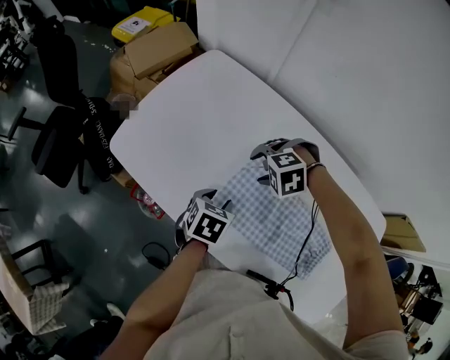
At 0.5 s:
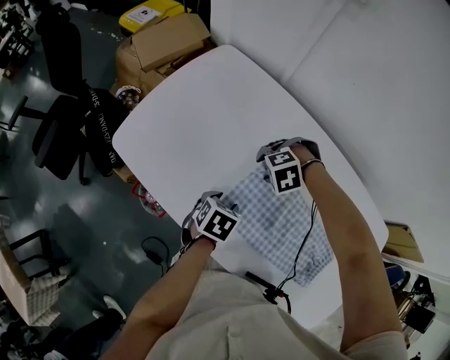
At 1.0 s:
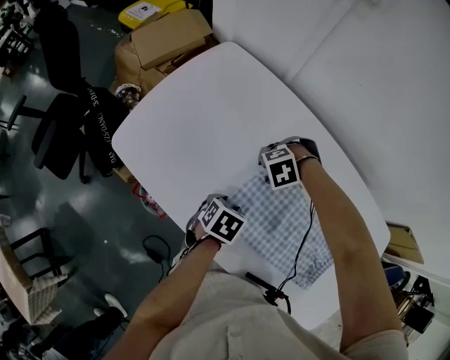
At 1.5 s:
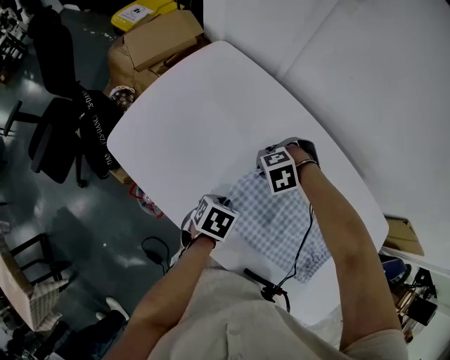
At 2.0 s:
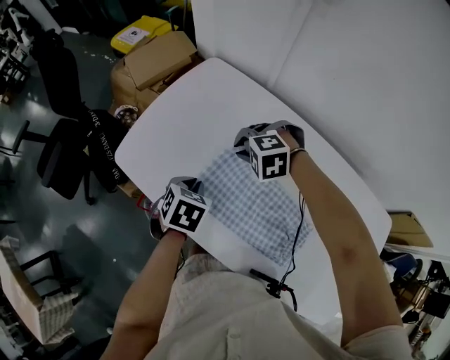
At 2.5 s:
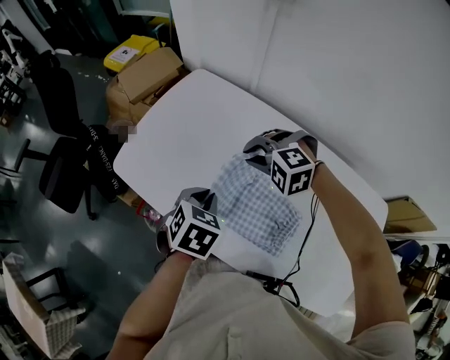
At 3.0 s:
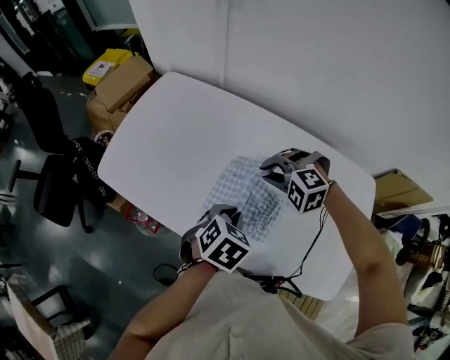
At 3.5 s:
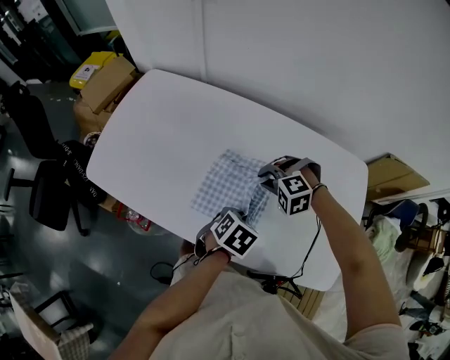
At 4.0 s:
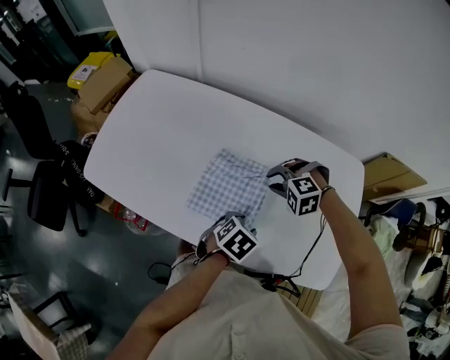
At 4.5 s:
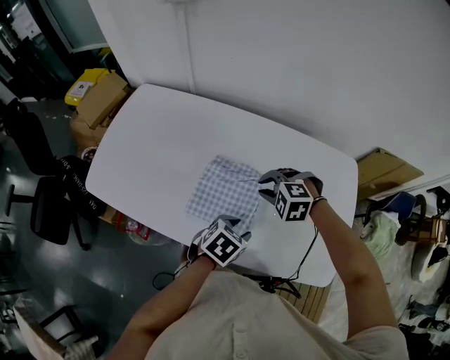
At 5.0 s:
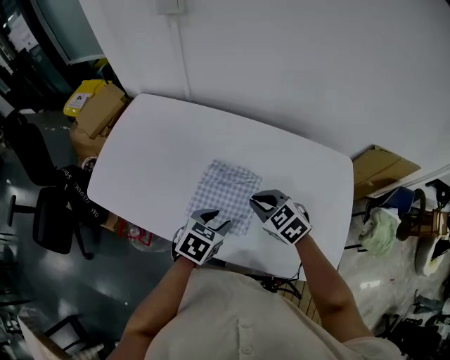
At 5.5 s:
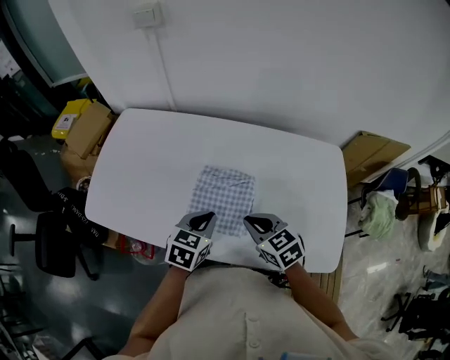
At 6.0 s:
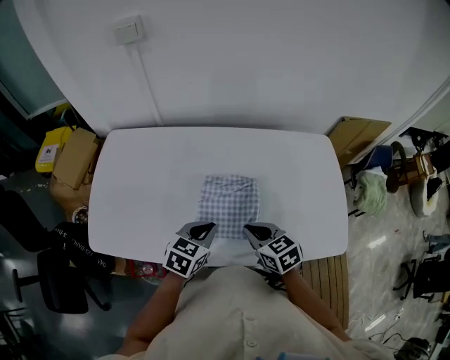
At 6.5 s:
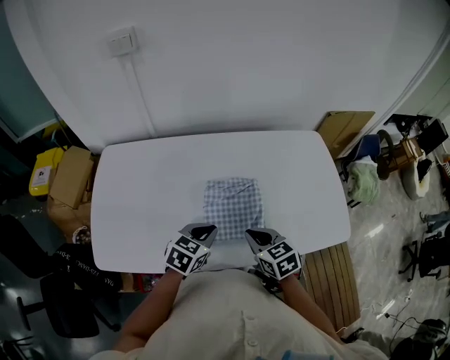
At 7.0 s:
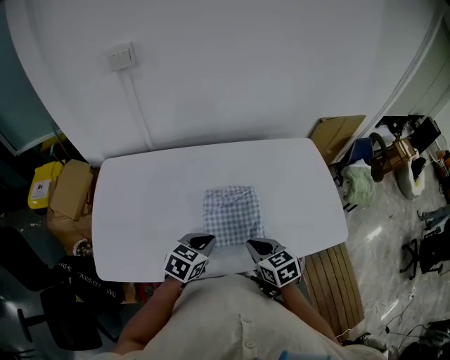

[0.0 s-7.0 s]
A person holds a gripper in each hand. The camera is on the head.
0.0 to 2.0 s: The right gripper moves roughly 5 cm downward and comes back, and closes its fingers. Meanwhile the left gripper ends up approximately 10 cm from where it was, and closes its fingers.
2.0 to 3.5 s: The right gripper moves approximately 5 cm upward and comes back, while the left gripper travels upward and back again, about 5 cm each way, and rotates approximately 30 degrees.
3.5 to 5.0 s: The right gripper shifts some 10 cm upward and backward, and twists roughly 60 degrees clockwise, seen from behind, while the left gripper heads upward, covering about 5 cm, and opens its fingers.
5.0 to 7.0 s: The left gripper ends up roughly 10 cm from where it was, turns by roughly 30 degrees, and closes its fingers; the right gripper changes place by roughly 10 cm, and twists some 40 degrees clockwise, seen from behind.

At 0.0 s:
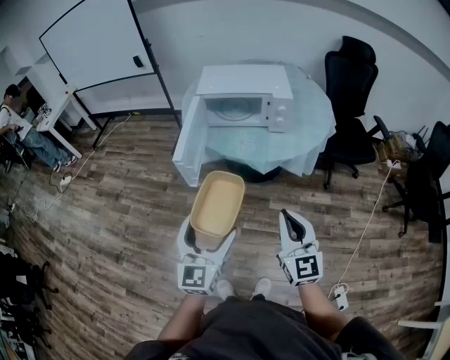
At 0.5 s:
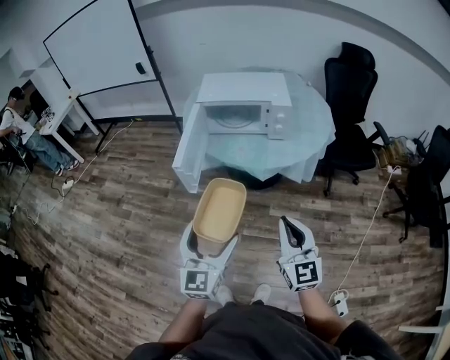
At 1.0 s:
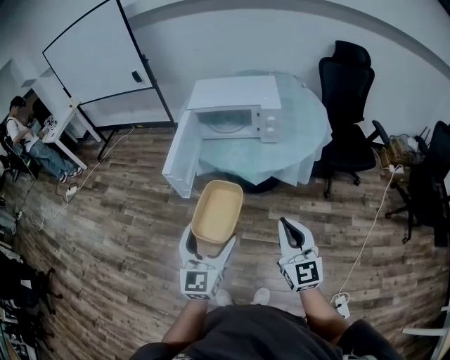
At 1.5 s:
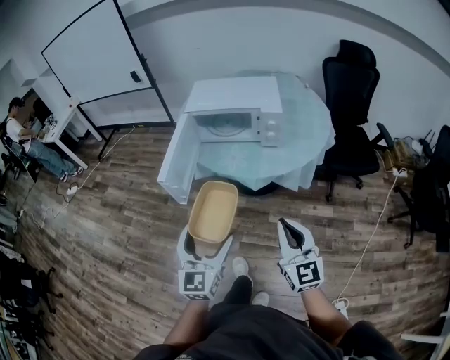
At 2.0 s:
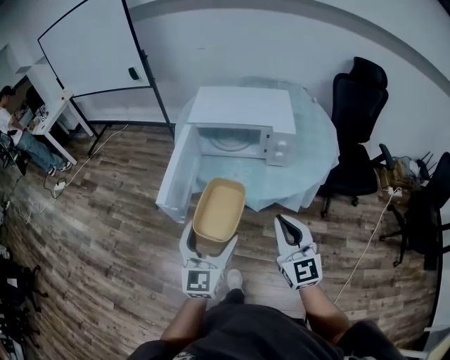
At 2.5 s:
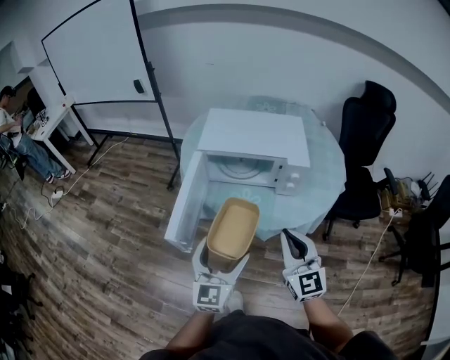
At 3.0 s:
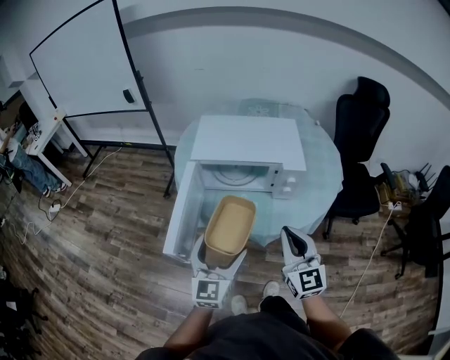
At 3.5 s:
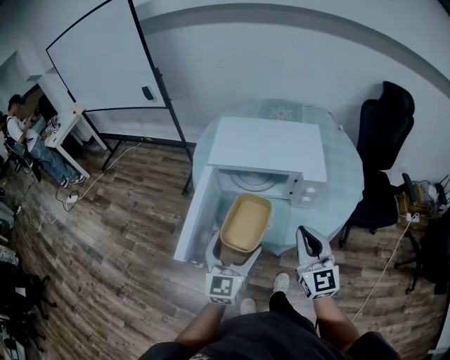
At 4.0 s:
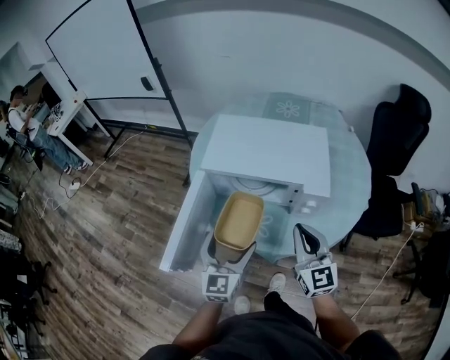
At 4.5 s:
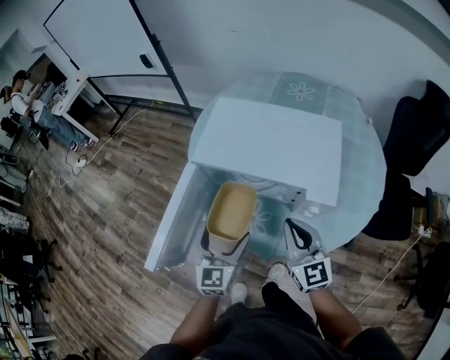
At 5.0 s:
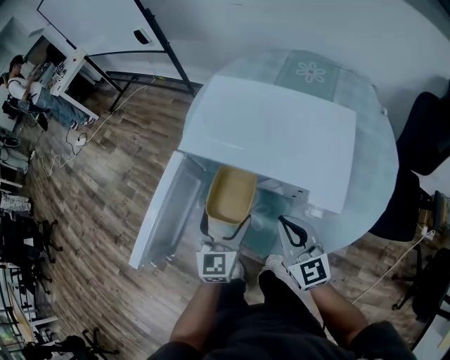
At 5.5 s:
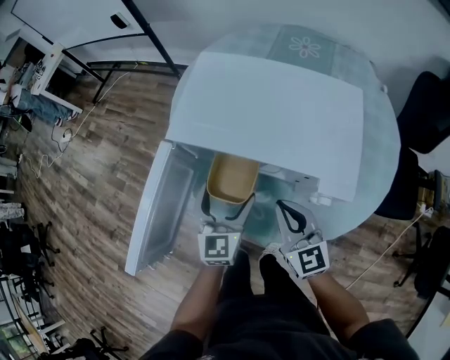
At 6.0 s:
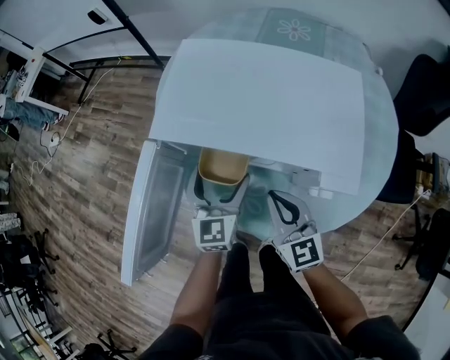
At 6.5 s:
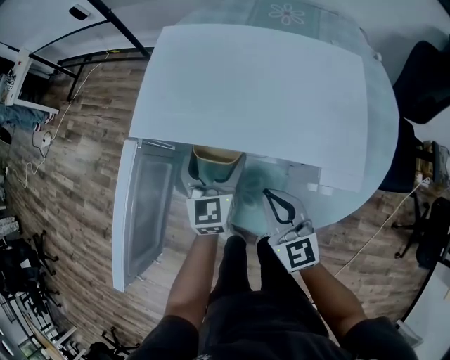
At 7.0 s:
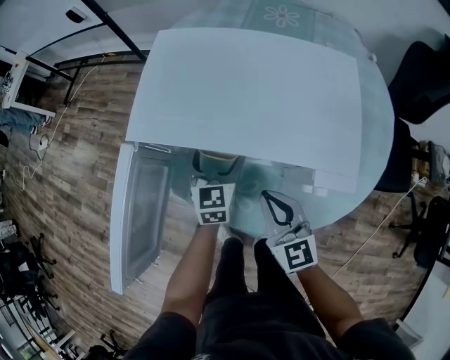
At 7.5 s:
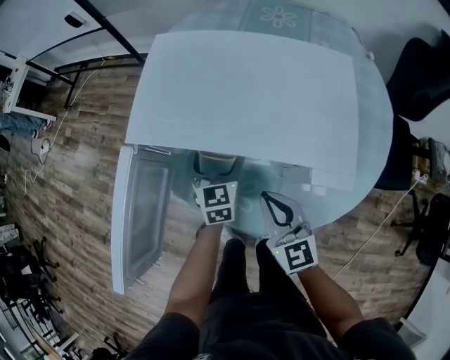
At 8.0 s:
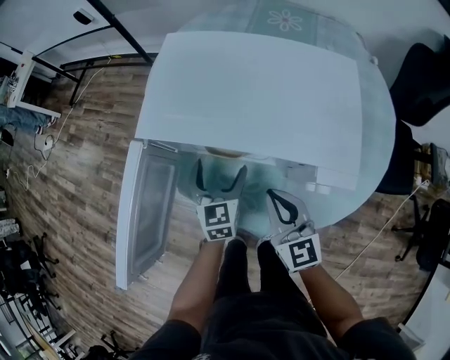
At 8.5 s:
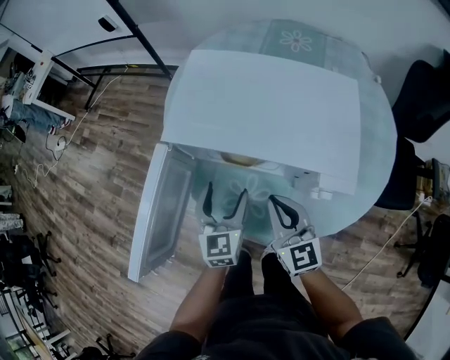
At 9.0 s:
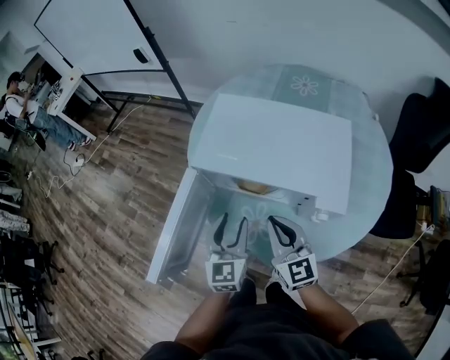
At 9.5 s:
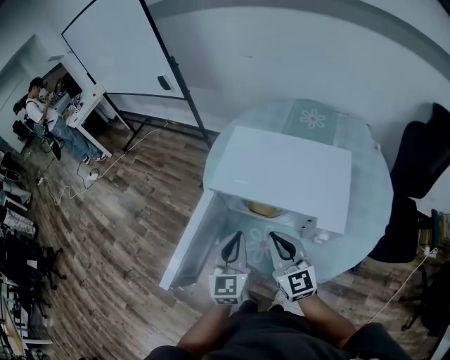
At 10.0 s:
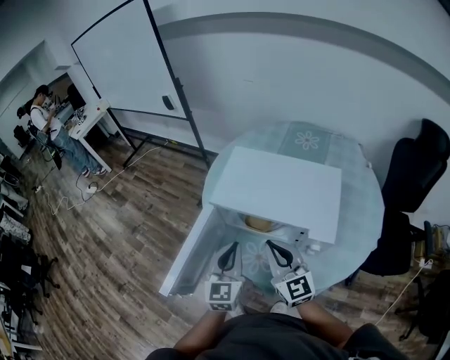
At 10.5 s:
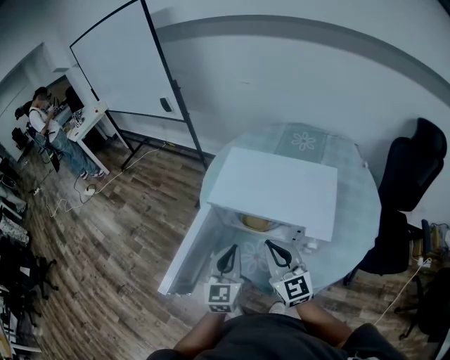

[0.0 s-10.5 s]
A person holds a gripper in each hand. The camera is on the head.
0.0 to 2.0 s: The two grippers go approximately 15 cm forward.
2.0 to 4.0 s: Both grippers travel together forward, approximately 25 cm.
4.0 to 6.5 s: The right gripper shifts some 20 cm downward and forward; the left gripper moves forward and downward, some 25 cm.
6.5 to 8.5 s: The left gripper is displaced backward by about 10 cm.
8.5 to 10.5 s: The left gripper is displaced upward and backward by some 15 cm, and closes its fingers; the right gripper is displaced upward by about 15 cm.

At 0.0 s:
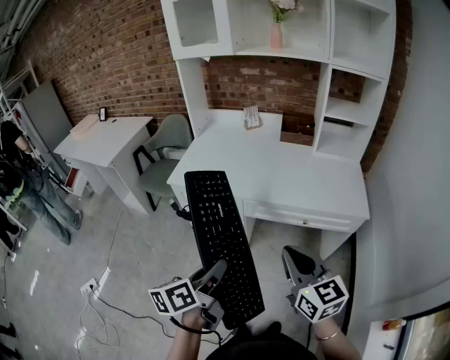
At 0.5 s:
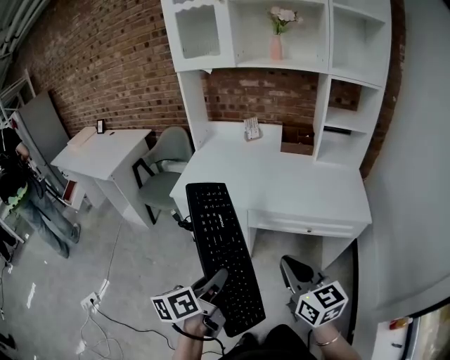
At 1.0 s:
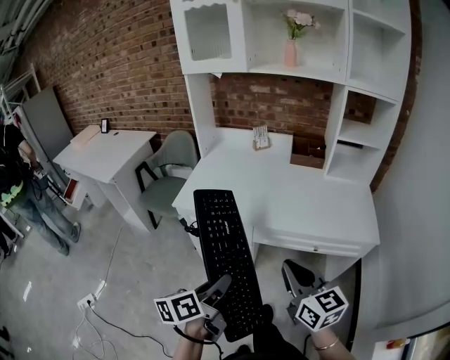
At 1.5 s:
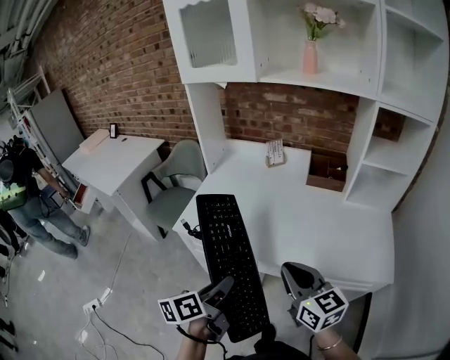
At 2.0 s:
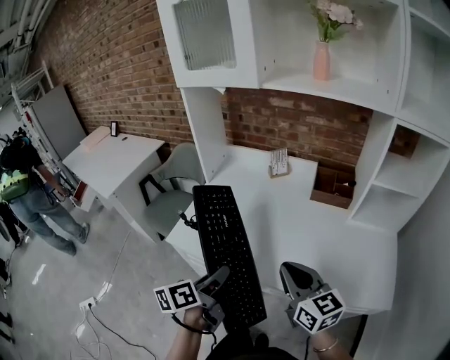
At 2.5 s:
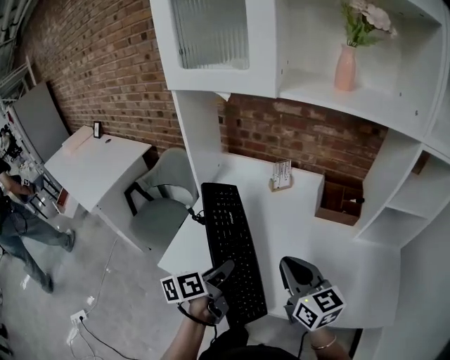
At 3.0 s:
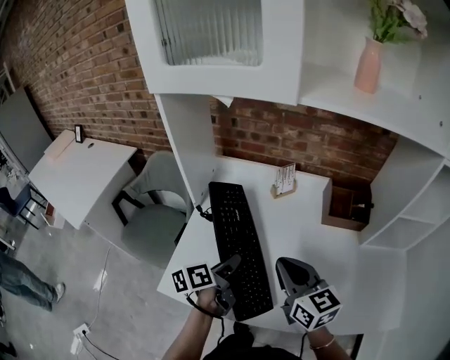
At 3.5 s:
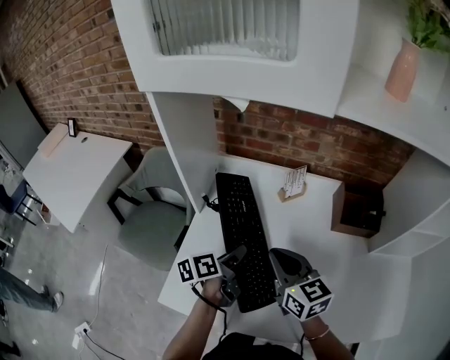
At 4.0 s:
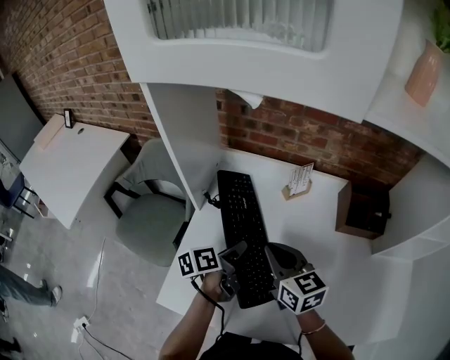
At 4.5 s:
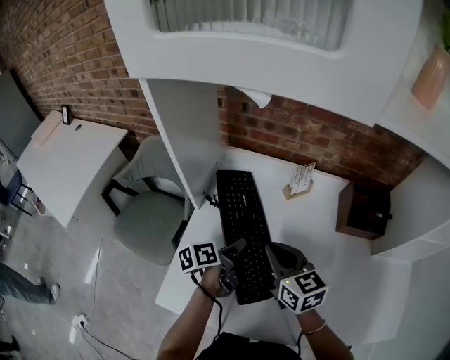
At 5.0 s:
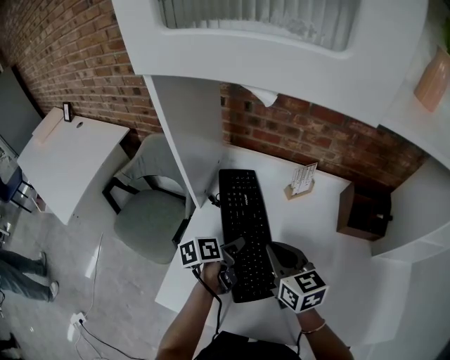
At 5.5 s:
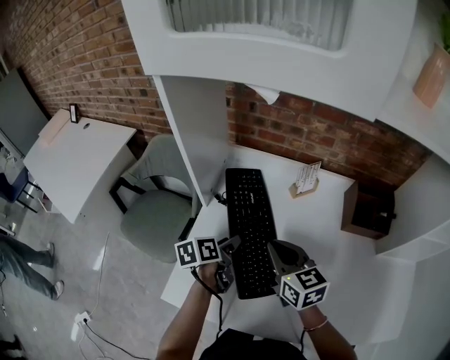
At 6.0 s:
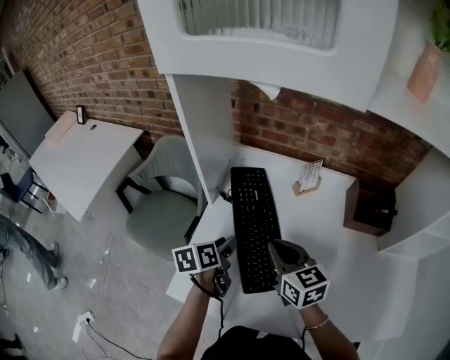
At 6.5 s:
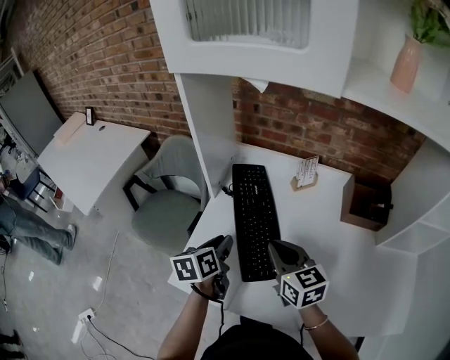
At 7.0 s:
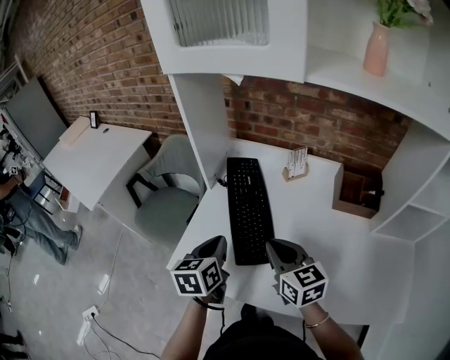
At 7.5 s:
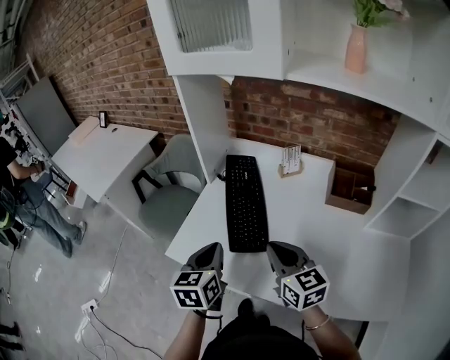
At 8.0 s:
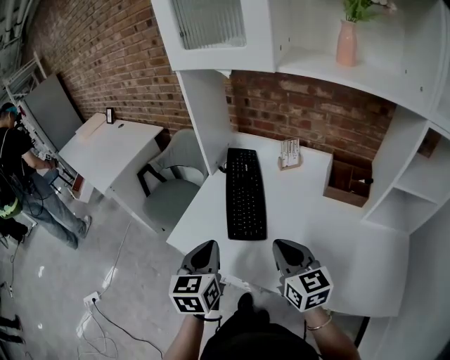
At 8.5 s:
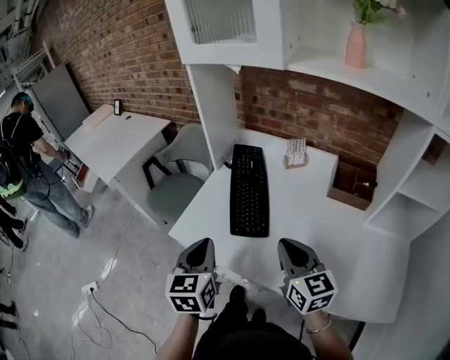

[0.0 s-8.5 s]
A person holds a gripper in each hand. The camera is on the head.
0.0 to 2.0 s: The two grippers go some 30 cm forward.
2.0 to 4.0 s: The right gripper shifts about 35 cm forward and to the left; the left gripper is displaced forward by approximately 35 cm, and changes its angle by roughly 20 degrees.
4.0 to 6.5 s: The left gripper heads to the left and backward, covering about 10 cm, and changes its angle by approximately 30 degrees; the right gripper heads backward, covering roughly 5 cm.
6.5 to 8.5 s: The right gripper shifts some 20 cm backward. Meanwhile the left gripper goes roughly 25 cm backward and upward, changes its angle by roughly 40 degrees, and closes up.
